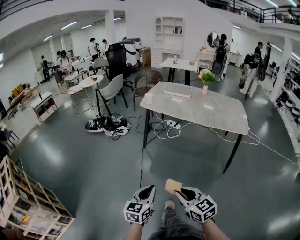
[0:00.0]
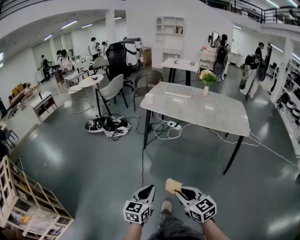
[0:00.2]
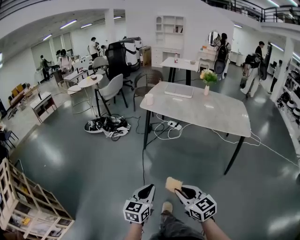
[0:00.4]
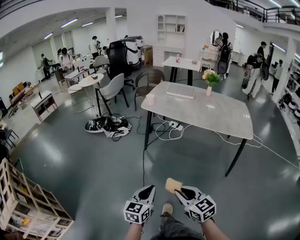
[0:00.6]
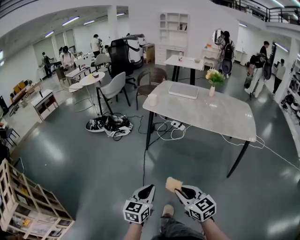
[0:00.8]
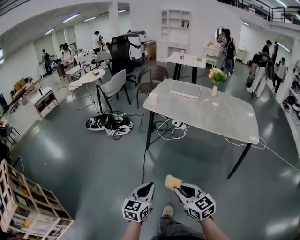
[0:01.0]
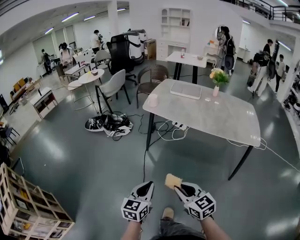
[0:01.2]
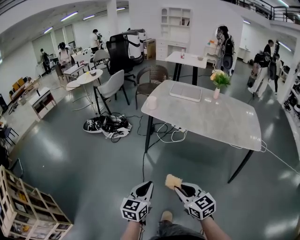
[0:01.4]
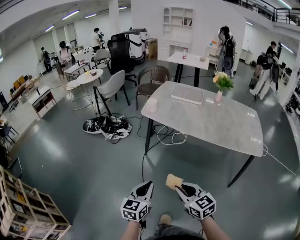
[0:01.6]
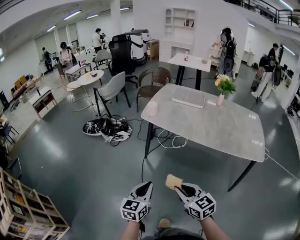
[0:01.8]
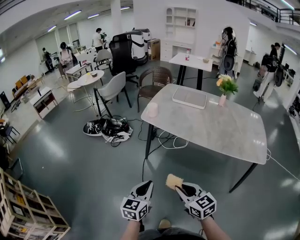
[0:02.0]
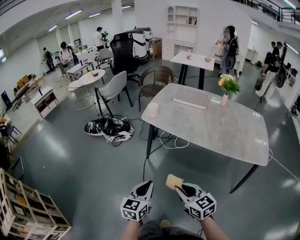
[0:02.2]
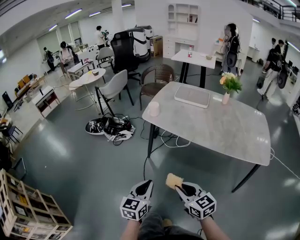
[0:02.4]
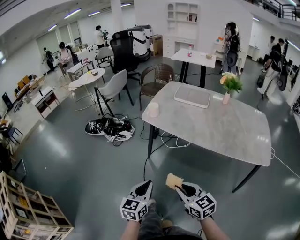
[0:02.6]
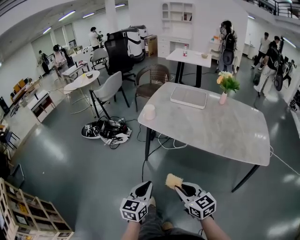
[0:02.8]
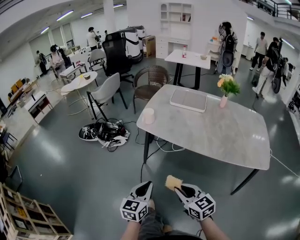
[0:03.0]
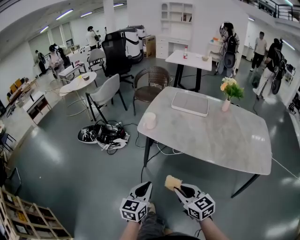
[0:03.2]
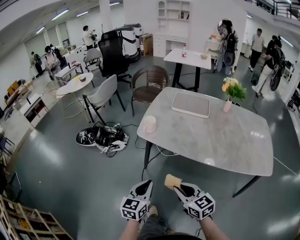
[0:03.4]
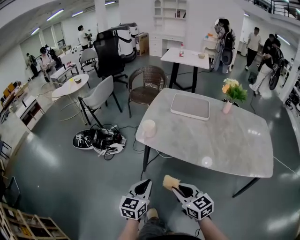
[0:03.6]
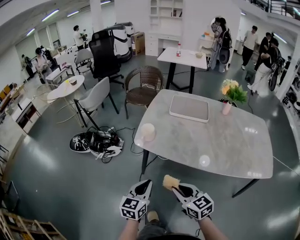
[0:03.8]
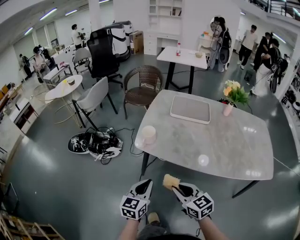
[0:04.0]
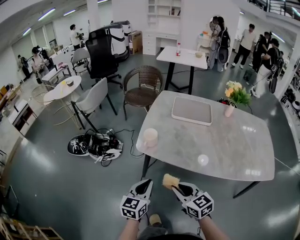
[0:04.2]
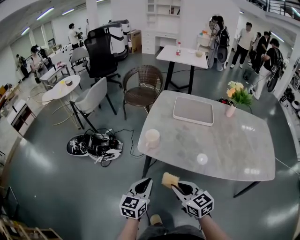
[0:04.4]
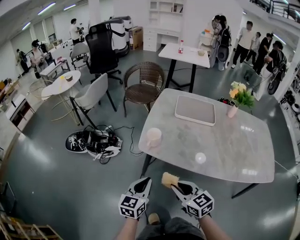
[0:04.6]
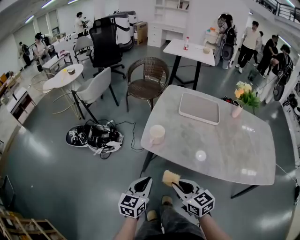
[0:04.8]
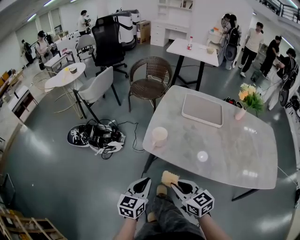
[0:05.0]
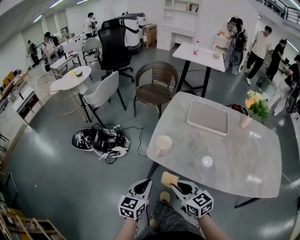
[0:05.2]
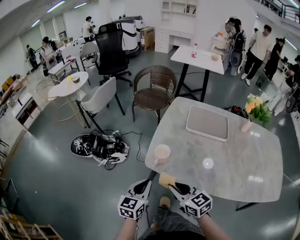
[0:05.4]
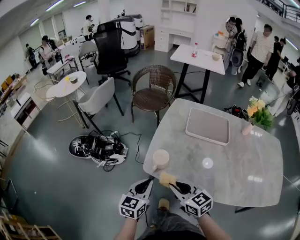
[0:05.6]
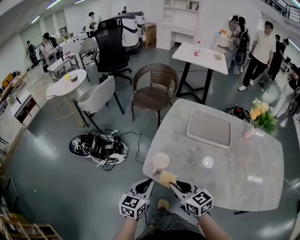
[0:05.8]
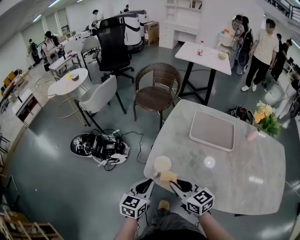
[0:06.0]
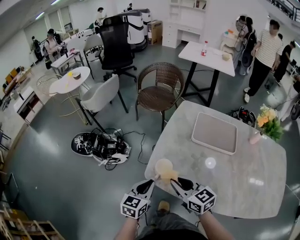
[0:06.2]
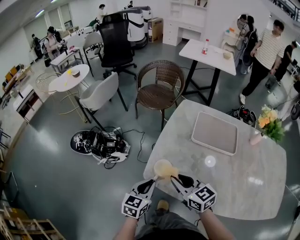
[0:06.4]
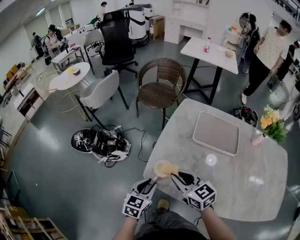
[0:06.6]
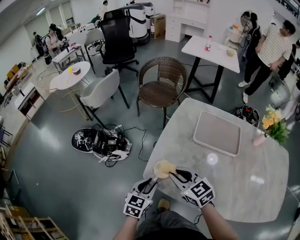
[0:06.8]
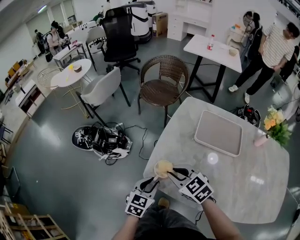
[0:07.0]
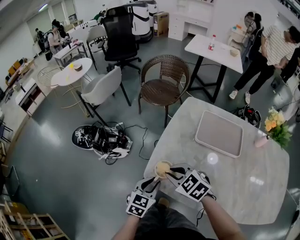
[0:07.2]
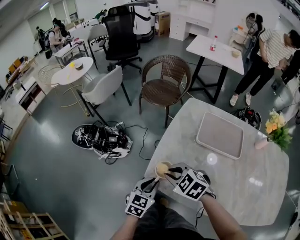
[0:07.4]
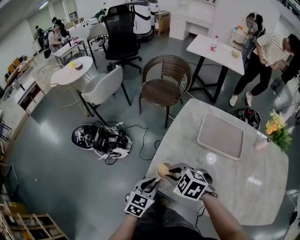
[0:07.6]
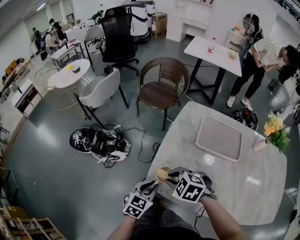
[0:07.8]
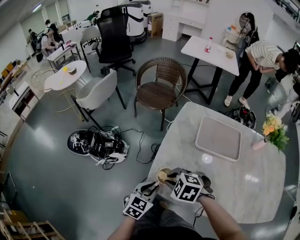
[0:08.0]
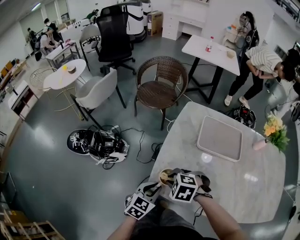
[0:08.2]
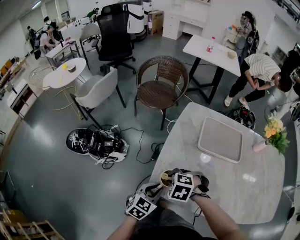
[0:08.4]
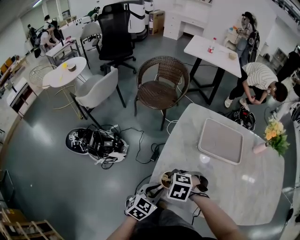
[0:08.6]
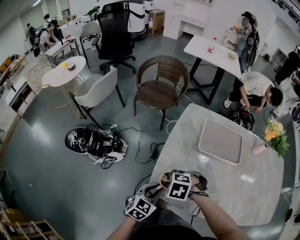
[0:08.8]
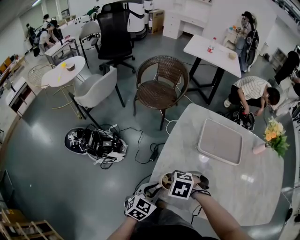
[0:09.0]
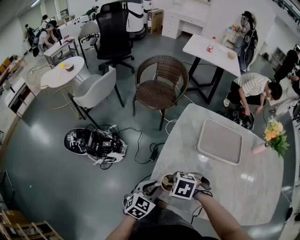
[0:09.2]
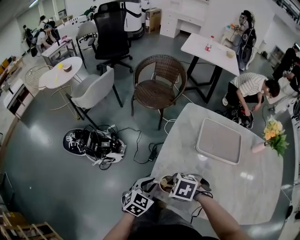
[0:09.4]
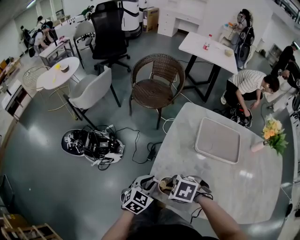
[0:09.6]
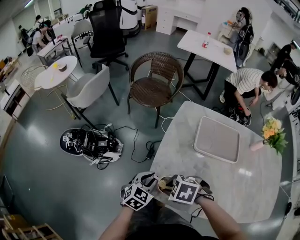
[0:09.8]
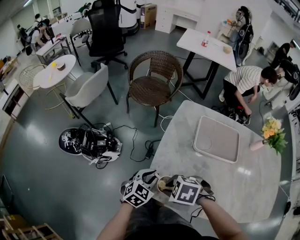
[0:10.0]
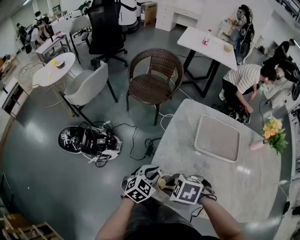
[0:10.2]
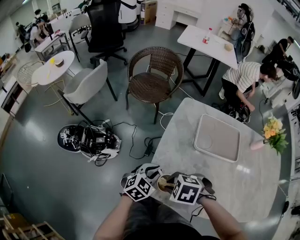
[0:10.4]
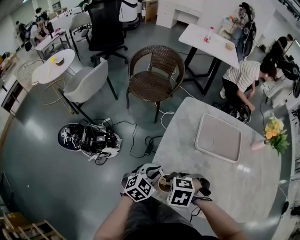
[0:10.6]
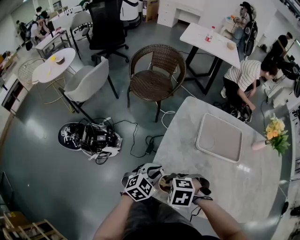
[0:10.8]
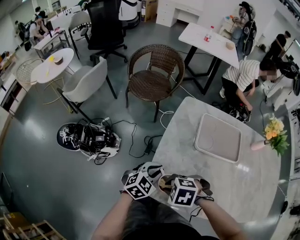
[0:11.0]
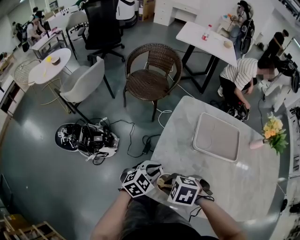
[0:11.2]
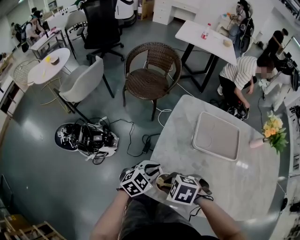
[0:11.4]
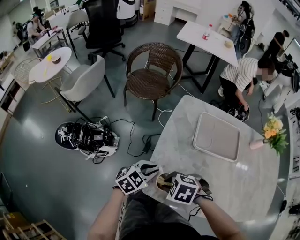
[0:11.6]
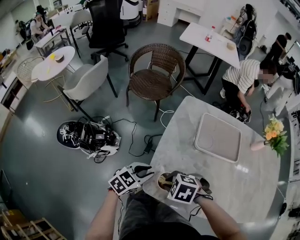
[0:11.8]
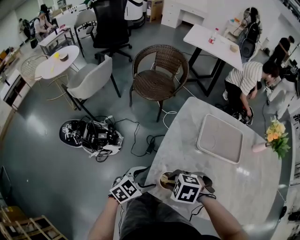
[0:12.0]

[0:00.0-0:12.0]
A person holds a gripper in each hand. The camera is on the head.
0:00.0 to 0:01.6: The two grippers go approximately 25 cm forward.
0:01.6 to 0:03.0: Both grippers travel together forward, about 15 cm.
0:03.0 to 0:04.4: Both grippers travel together forward, some 25 cm.
0:04.4 to 0:06.0: Both grippers move forward, some 20 cm.
0:06.0 to 0:07.6: The left gripper shifts by some 5 cm, while the right gripper heads forward, covering about 10 cm, and points its fingers approximately 40 degrees further downward.
0:07.6 to 0:09.0: The right gripper goes roughly 5 cm downward, and swivels approximately 20 degrees.
0:09.0 to 0:10.4: The left gripper shifts by about 10 cm.
0:10.4 to 0:12.0: The left gripper changes place by approximately 5 cm, and opens.

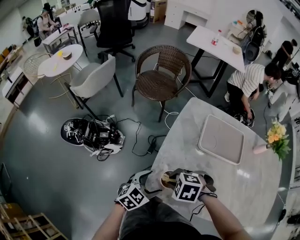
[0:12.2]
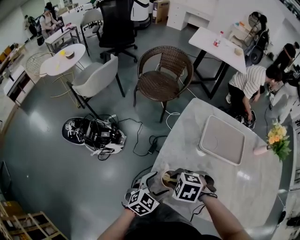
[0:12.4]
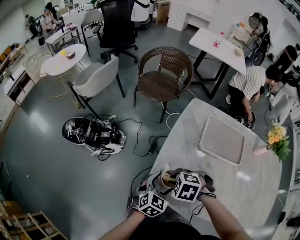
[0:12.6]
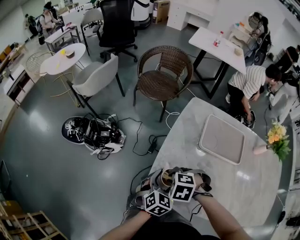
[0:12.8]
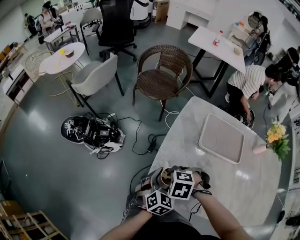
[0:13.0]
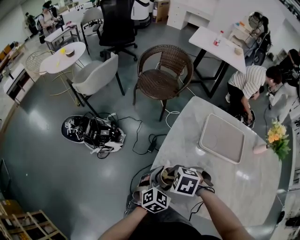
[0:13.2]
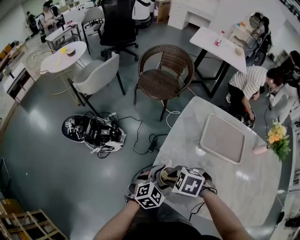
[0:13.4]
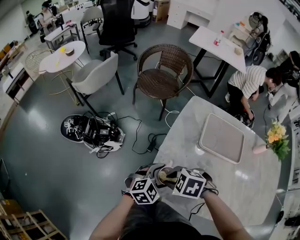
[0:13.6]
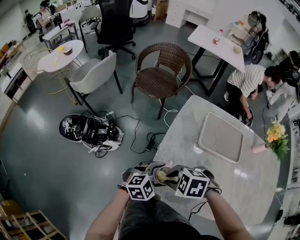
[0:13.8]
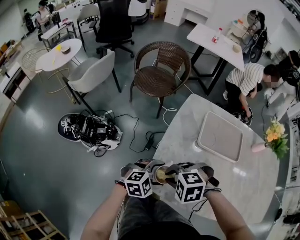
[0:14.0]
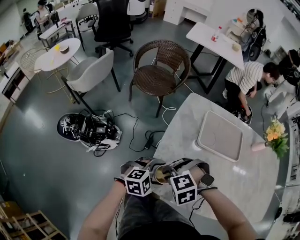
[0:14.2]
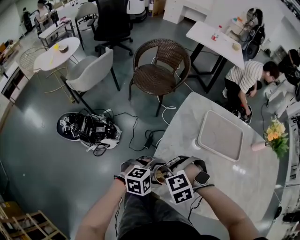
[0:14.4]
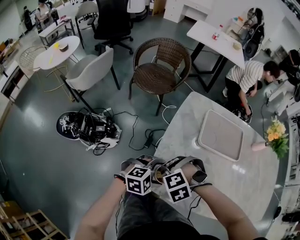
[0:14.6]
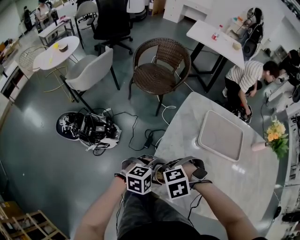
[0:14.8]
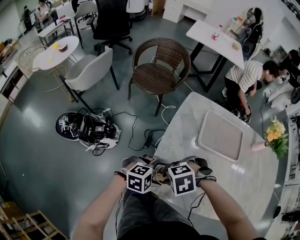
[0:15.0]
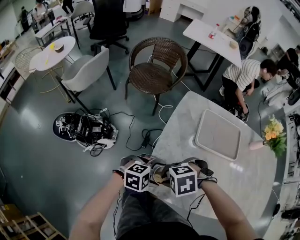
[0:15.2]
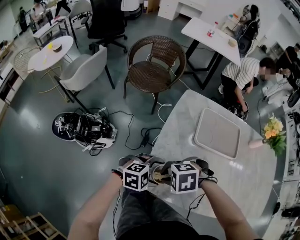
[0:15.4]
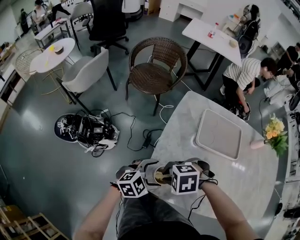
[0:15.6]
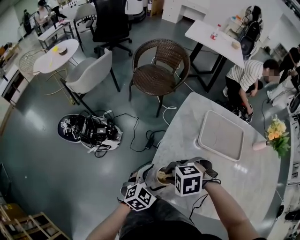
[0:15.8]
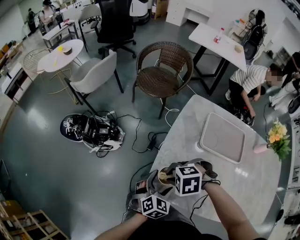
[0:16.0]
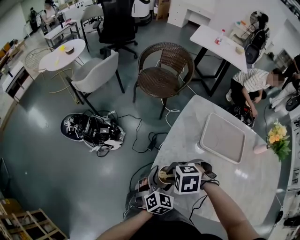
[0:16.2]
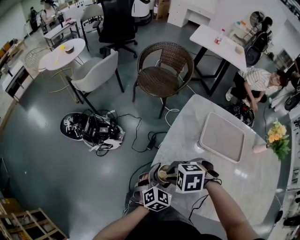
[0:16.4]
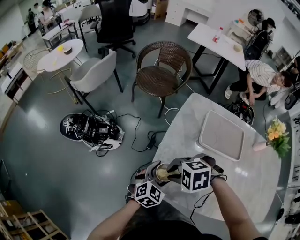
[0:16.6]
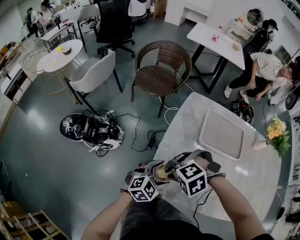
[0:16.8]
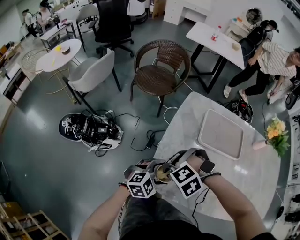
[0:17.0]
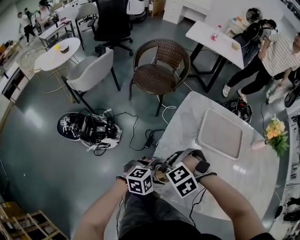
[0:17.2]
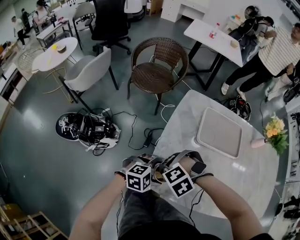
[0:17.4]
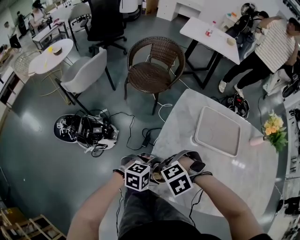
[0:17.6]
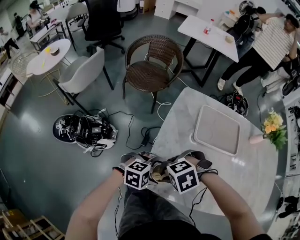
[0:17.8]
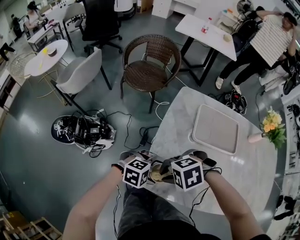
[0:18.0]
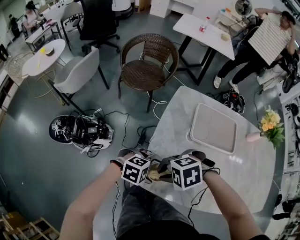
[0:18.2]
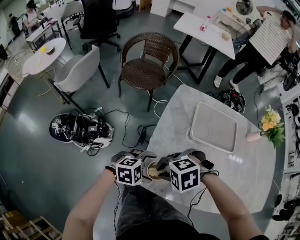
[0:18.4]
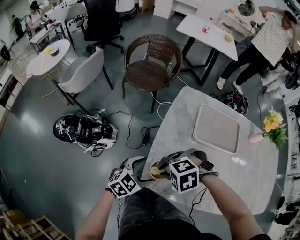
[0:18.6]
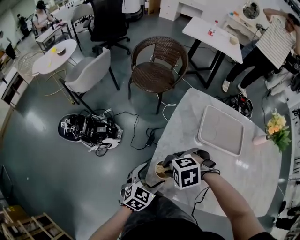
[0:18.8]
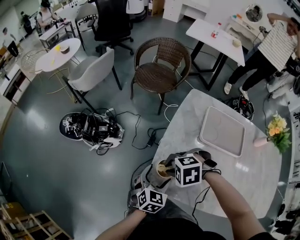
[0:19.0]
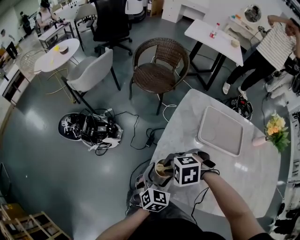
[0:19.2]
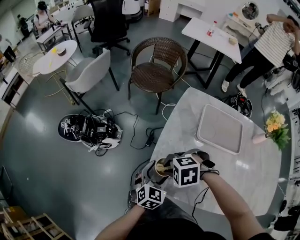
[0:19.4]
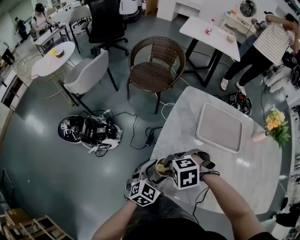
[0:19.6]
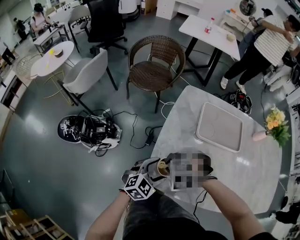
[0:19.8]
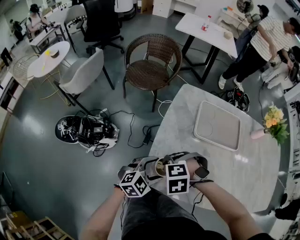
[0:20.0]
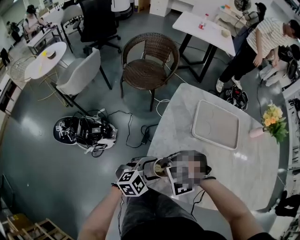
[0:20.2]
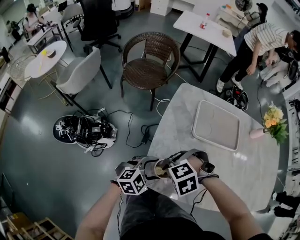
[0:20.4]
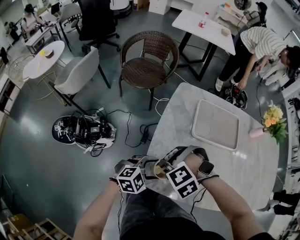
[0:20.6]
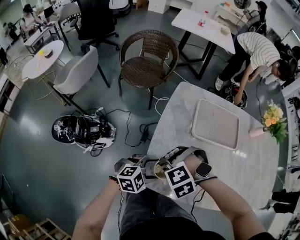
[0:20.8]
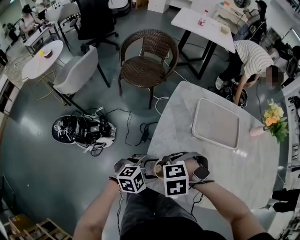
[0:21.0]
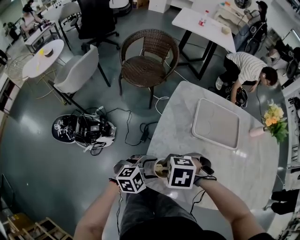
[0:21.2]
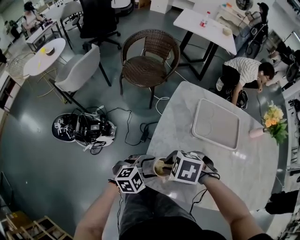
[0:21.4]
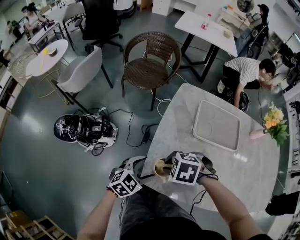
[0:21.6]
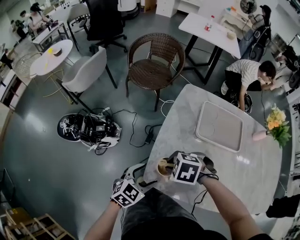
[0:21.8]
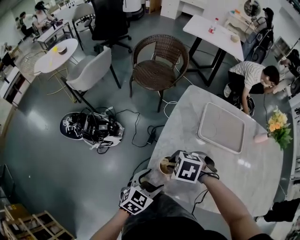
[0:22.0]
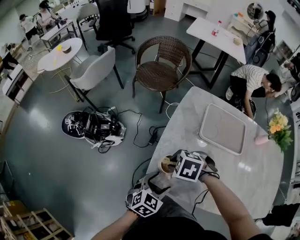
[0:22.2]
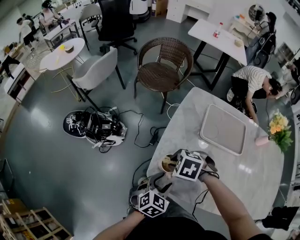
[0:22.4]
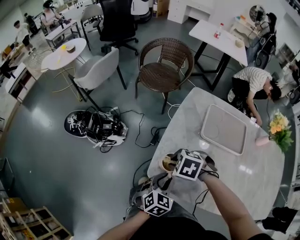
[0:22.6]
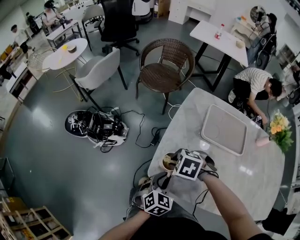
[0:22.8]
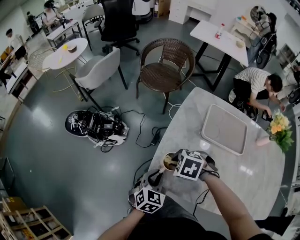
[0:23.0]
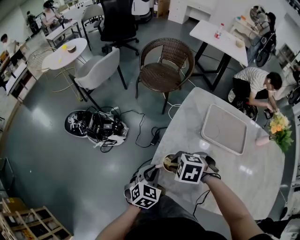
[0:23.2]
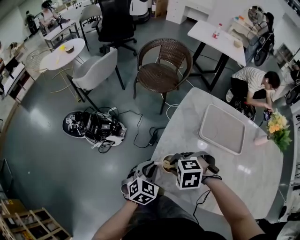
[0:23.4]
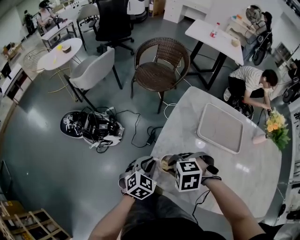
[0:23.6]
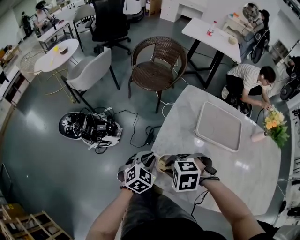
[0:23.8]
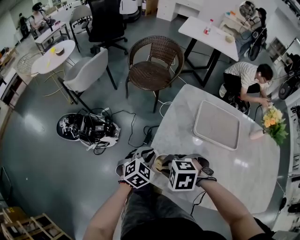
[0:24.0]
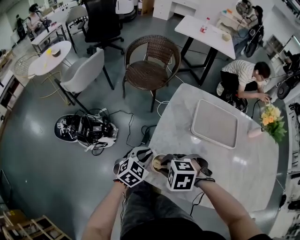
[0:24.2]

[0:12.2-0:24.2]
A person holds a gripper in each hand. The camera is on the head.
0:12.2 to 0:13.8: The left gripper swivels roughly 30 degrees.
0:13.8 to 0:15.2: The left gripper changes its angle by roughly 20 degrees. Meanwhile the right gripper changes its angle by about 20 degrees.
0:15.2 to 0:16.6: The left gripper rotates approximately 50 degrees.
0:16.6 to 0:18.2: The left gripper changes its angle by roughly 60 degrees.
0:18.2 to 0:19.8: The left gripper turns by some 50 degrees. Meanwhile the right gripper changes its angle by approximately 20 degrees.
0:19.8 to 0:21.2: The left gripper swivels approximately 20 degrees.
0:21.2 to 0:22.6: The left gripper moves about 5 cm, turns by approximately 50 degrees, and closes up.
0:22.6 to 0:24.2: The left gripper ends up approximately 10 cm from where it was.
